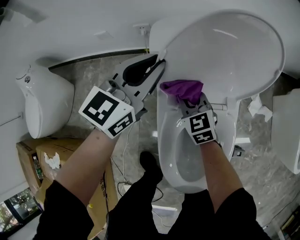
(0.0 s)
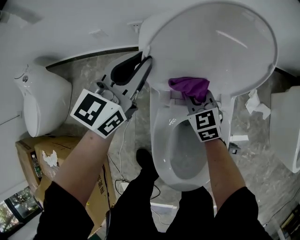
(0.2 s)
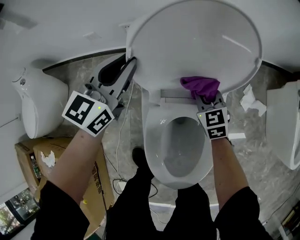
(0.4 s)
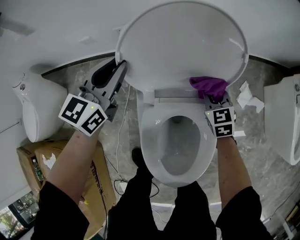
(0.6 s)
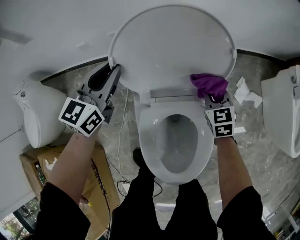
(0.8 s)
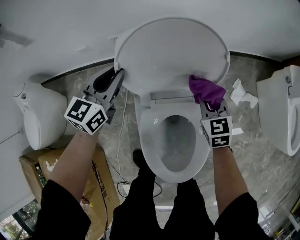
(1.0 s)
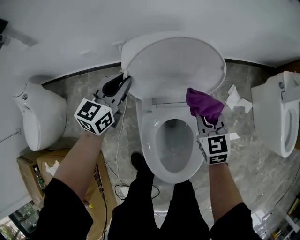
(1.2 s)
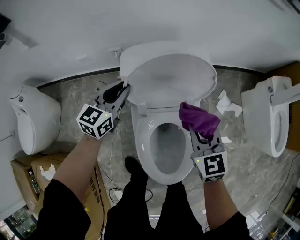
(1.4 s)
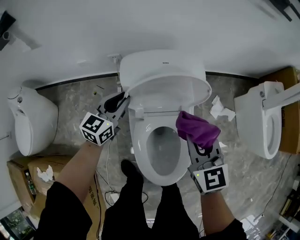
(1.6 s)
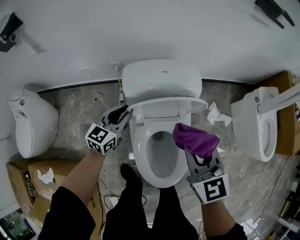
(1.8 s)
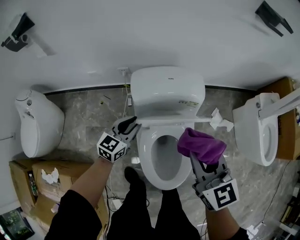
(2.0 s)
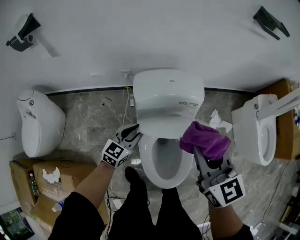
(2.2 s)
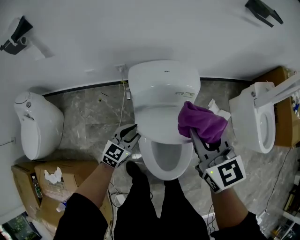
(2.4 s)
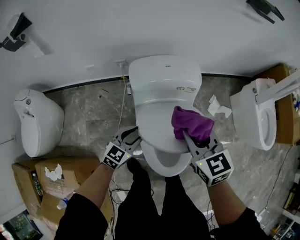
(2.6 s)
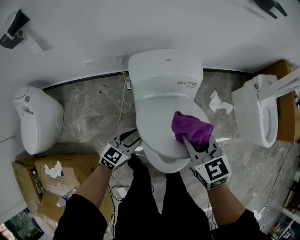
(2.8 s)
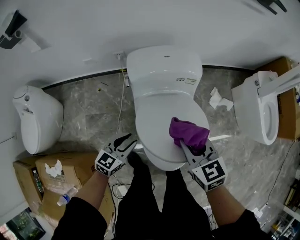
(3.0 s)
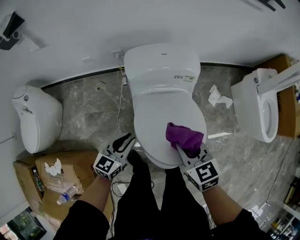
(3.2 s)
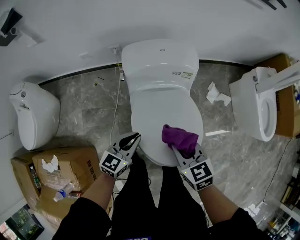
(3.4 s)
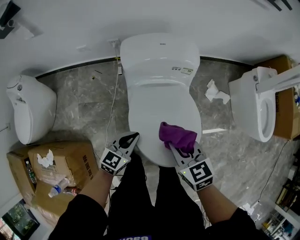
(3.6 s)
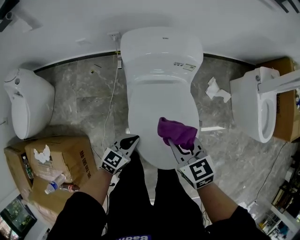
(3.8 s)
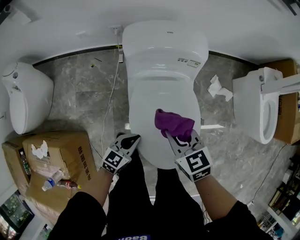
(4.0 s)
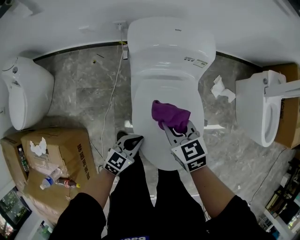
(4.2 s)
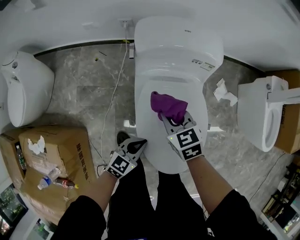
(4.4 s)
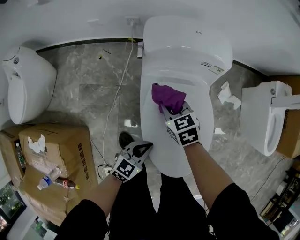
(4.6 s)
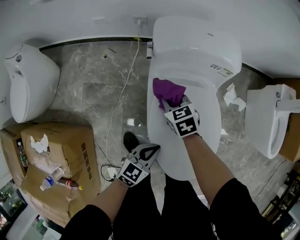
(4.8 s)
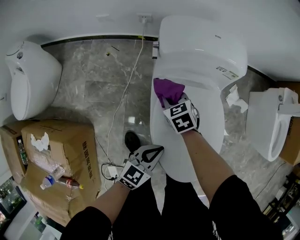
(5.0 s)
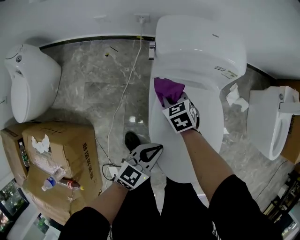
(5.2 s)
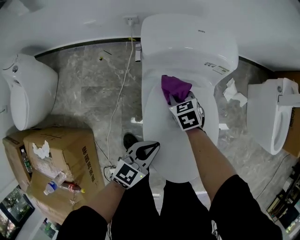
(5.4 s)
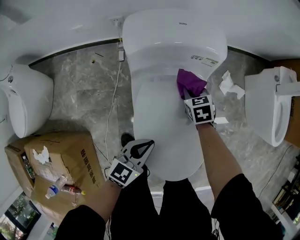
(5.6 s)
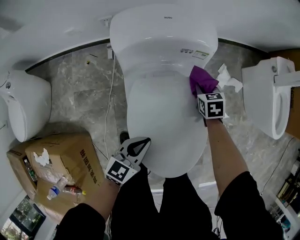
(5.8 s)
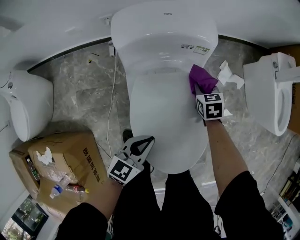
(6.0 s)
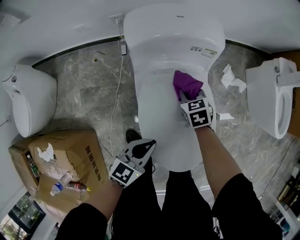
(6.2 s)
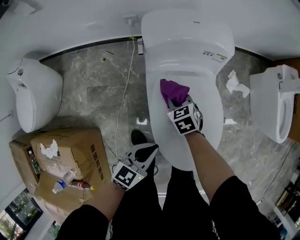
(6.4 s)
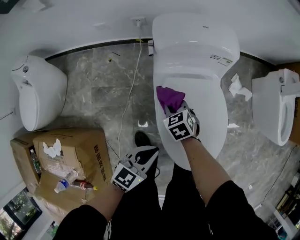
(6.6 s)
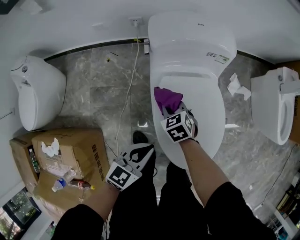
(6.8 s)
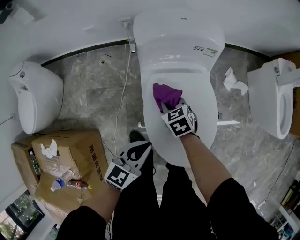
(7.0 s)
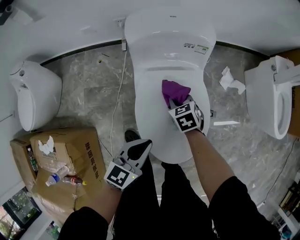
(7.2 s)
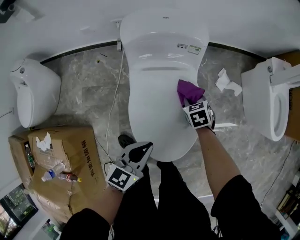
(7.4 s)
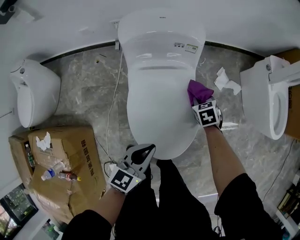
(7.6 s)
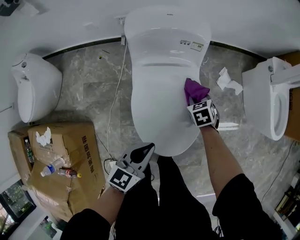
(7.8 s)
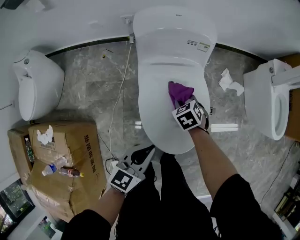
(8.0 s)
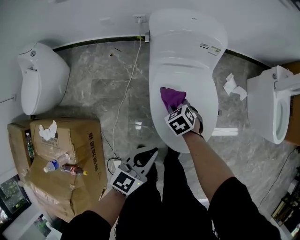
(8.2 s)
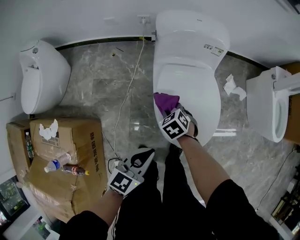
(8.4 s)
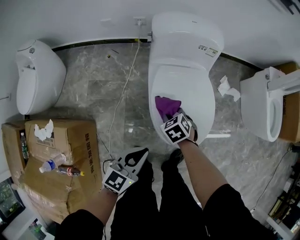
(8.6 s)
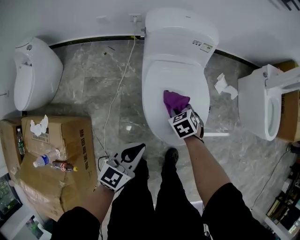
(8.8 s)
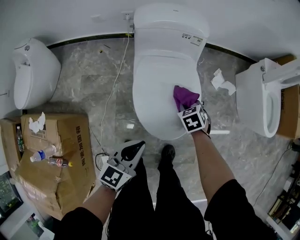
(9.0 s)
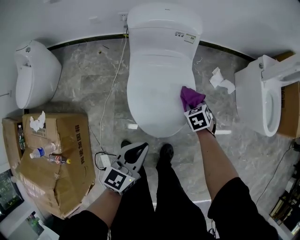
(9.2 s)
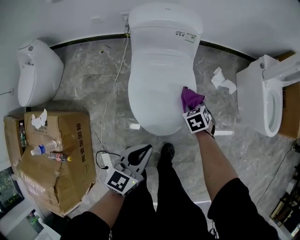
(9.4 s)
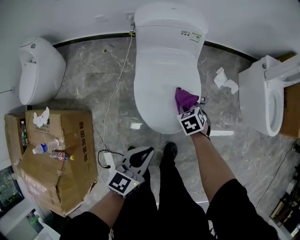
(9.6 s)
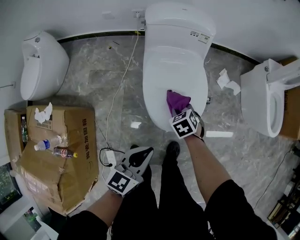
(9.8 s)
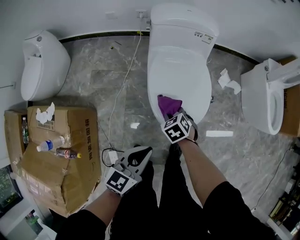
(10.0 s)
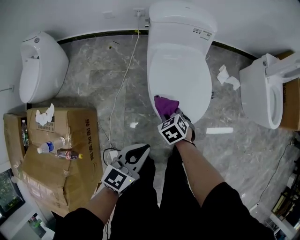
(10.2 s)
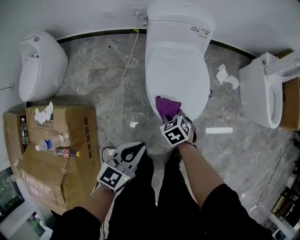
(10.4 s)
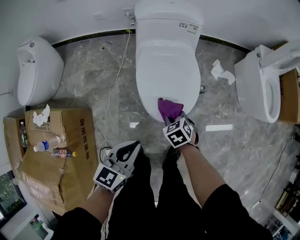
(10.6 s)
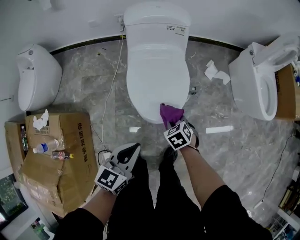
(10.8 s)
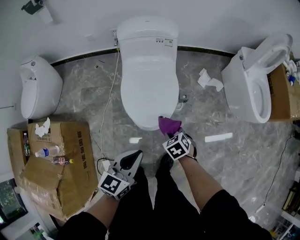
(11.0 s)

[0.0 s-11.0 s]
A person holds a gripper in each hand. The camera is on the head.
0.0 to 1.6 s: The right gripper is displaced upward and to the right by some 30 cm.
1.6 to 3.2 s: The left gripper moves backward, roughly 20 cm; the right gripper is displaced backward by some 15 cm, reaches roughly 15 cm upward, then returns, and turns by roughly 20 degrees.
3.2 to 4.8 s: The left gripper travels downward, backward and to the right by some 15 cm, and closes up. The right gripper shifts roughly 30 cm downward, to the left and forward.
4.8 to 6.2 s: The right gripper moves to the right, roughly 15 cm, while the left gripper shifts approximately 5 cm upward.
6.2 to 7.8 s: The right gripper moves left and right over roughly 30 cm, changing direction 2 times. Meanwhile the left gripper moves upward, backward and to the right, approximately 10 cm.
7.8 to 9.4 s: The two grippers go some 10 cm backward. The right gripper travels to the left and back again, approximately 25 cm each way. The left gripper goes to the left and returns, roughly 10 cm each way.
9.4 to 11.0 s: The right gripper goes about 20 cm backward, and moves some 20 cm to the left and comes back, while the left gripper heads backward, covering approximately 10 cm, and moves roughly 10 cm to the left and comes back.

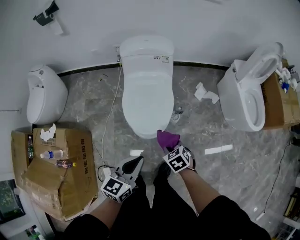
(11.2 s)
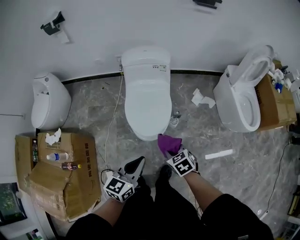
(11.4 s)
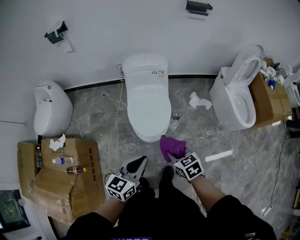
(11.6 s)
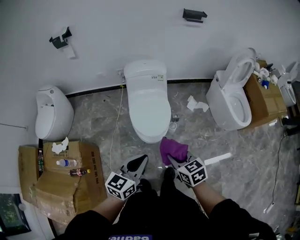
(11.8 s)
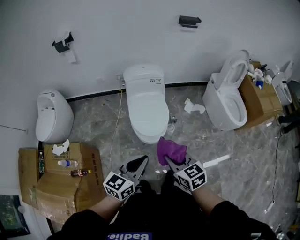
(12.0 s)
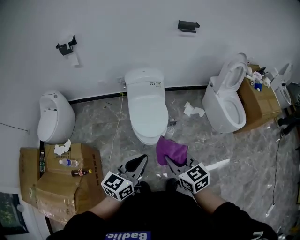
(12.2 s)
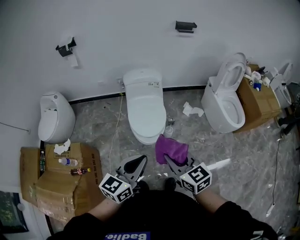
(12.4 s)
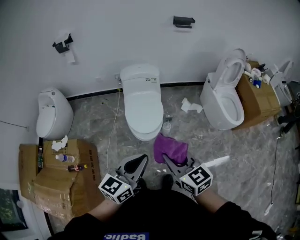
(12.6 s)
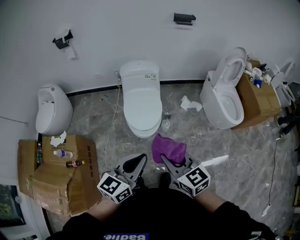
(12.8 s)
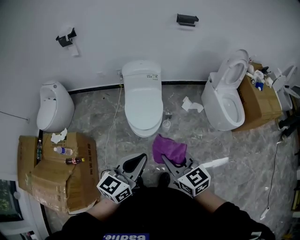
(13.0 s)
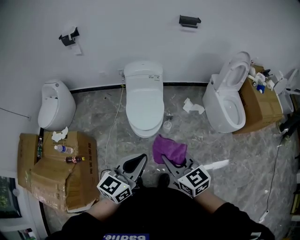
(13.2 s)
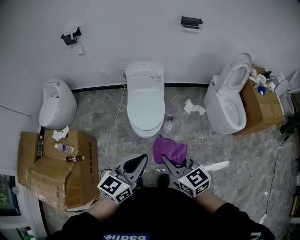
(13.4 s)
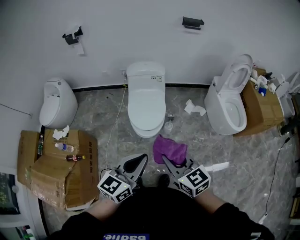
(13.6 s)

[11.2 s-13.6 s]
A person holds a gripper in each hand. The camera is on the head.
11.2 to 12.4 s: Both grippers travel together upward and backward, approximately 35 cm. The right gripper points its fingers roughly 40 degrees further upward.
12.4 to 13.6 s: The left gripper ends up about 5 cm from where it was.

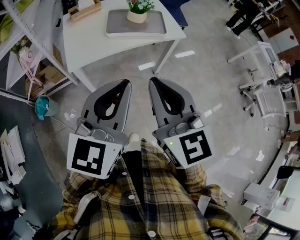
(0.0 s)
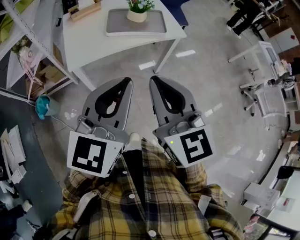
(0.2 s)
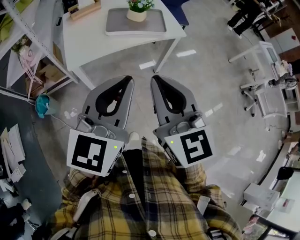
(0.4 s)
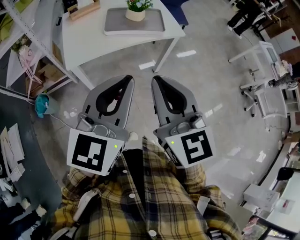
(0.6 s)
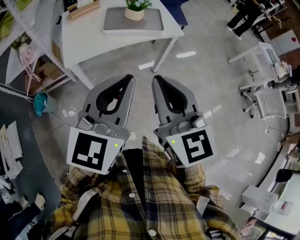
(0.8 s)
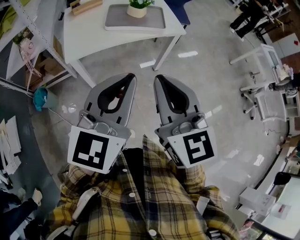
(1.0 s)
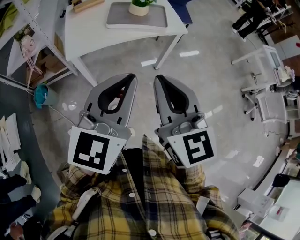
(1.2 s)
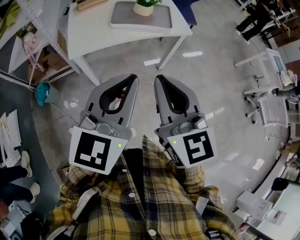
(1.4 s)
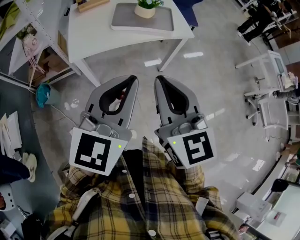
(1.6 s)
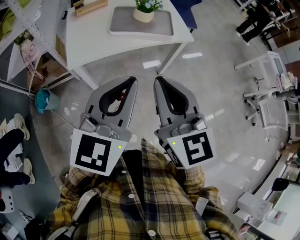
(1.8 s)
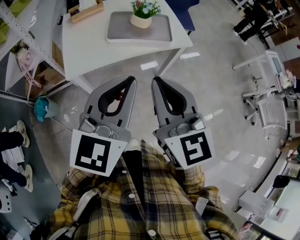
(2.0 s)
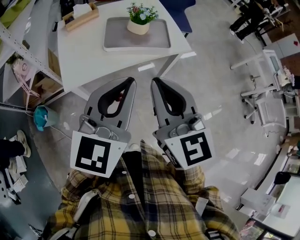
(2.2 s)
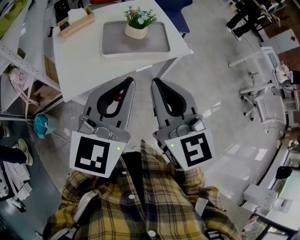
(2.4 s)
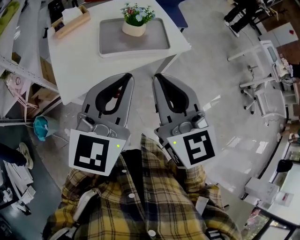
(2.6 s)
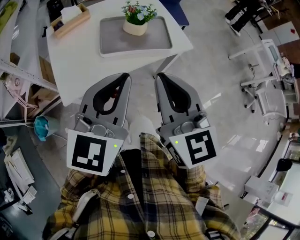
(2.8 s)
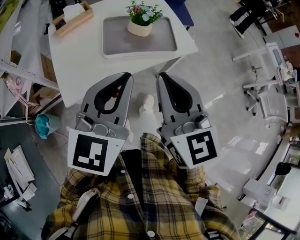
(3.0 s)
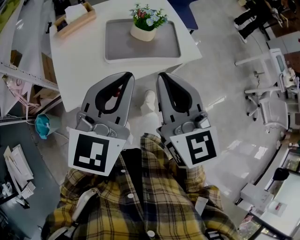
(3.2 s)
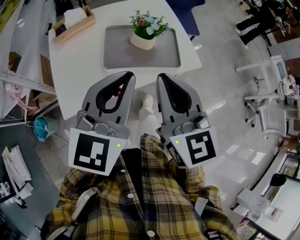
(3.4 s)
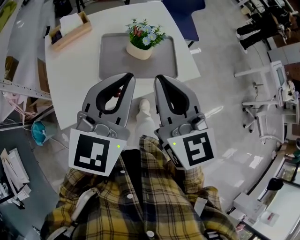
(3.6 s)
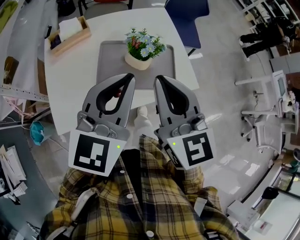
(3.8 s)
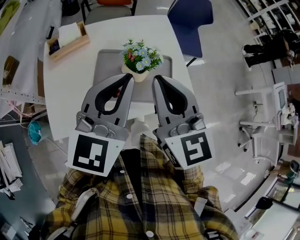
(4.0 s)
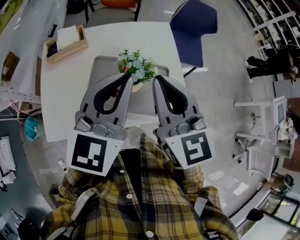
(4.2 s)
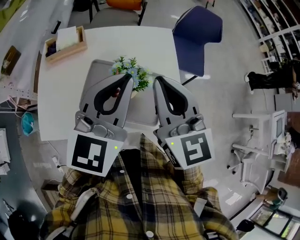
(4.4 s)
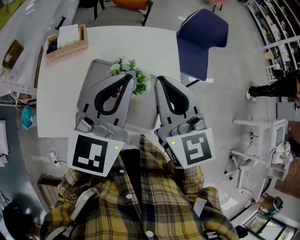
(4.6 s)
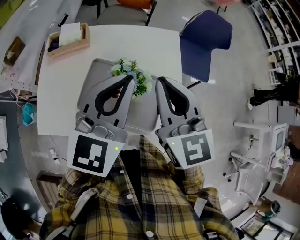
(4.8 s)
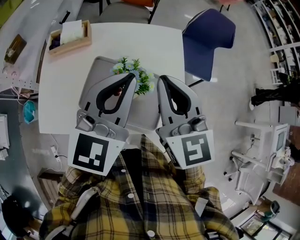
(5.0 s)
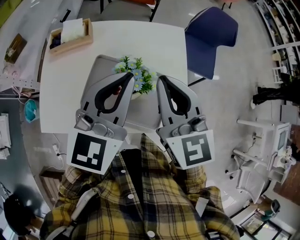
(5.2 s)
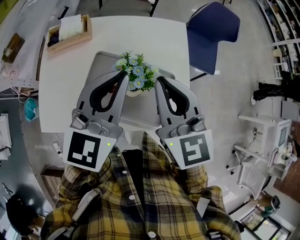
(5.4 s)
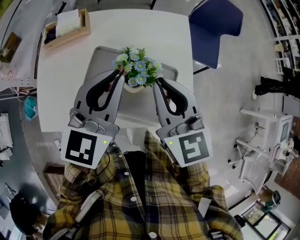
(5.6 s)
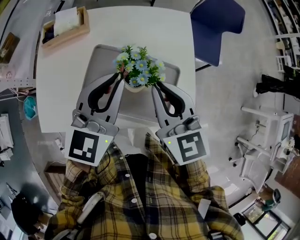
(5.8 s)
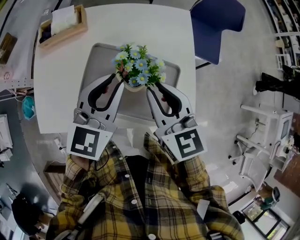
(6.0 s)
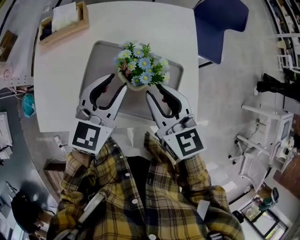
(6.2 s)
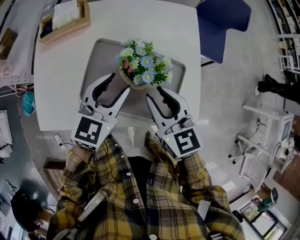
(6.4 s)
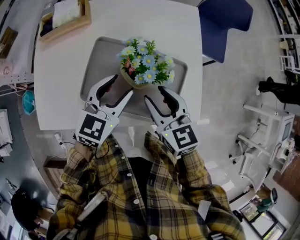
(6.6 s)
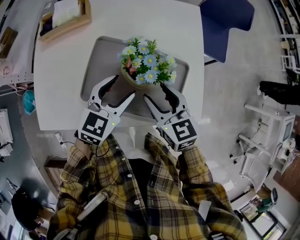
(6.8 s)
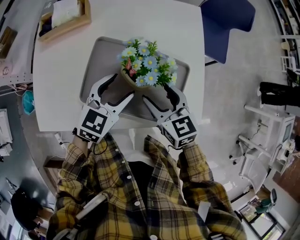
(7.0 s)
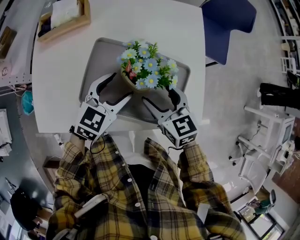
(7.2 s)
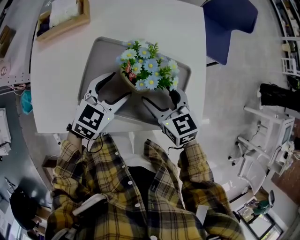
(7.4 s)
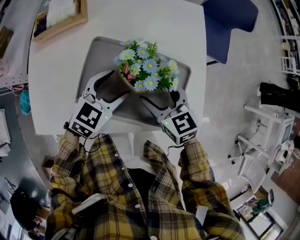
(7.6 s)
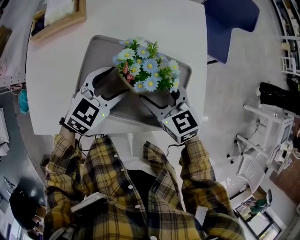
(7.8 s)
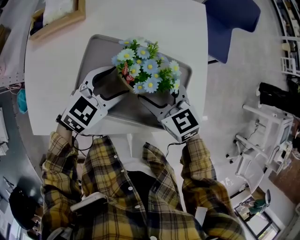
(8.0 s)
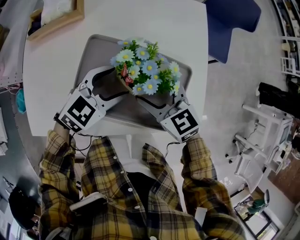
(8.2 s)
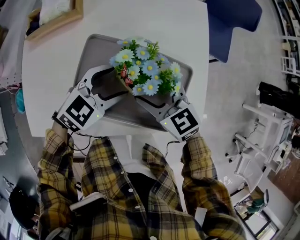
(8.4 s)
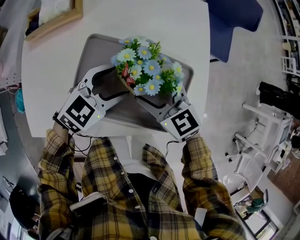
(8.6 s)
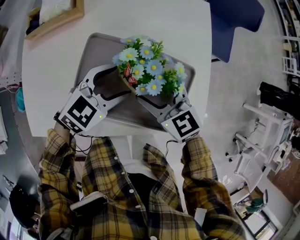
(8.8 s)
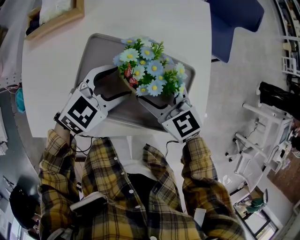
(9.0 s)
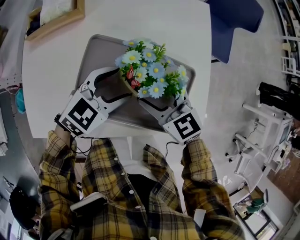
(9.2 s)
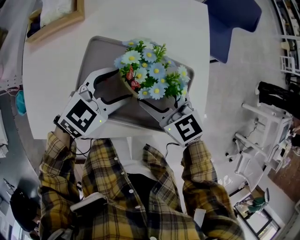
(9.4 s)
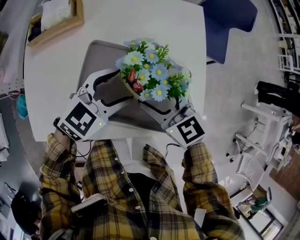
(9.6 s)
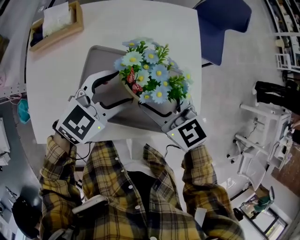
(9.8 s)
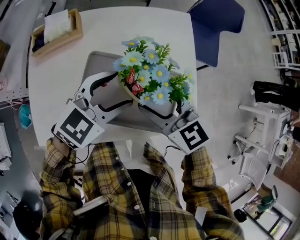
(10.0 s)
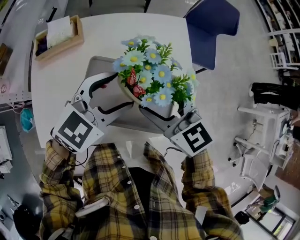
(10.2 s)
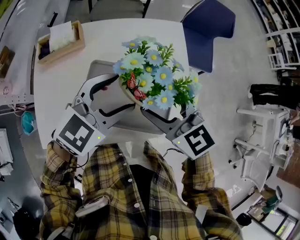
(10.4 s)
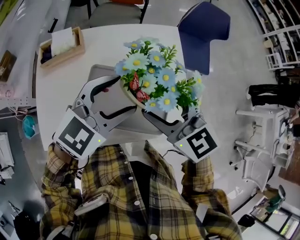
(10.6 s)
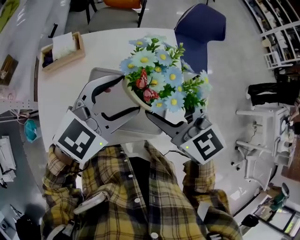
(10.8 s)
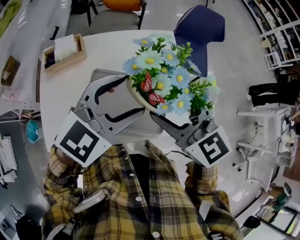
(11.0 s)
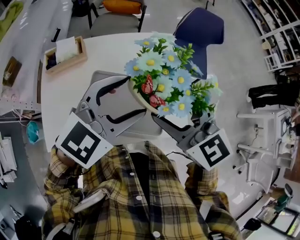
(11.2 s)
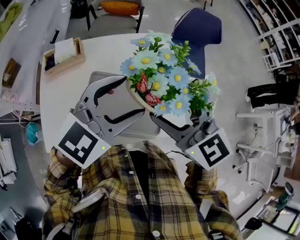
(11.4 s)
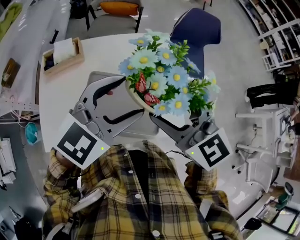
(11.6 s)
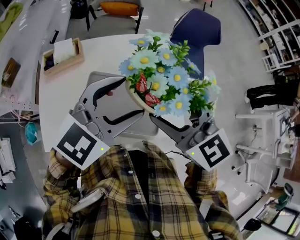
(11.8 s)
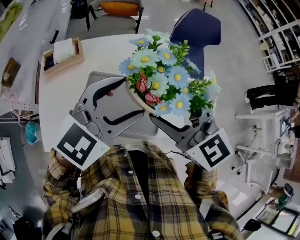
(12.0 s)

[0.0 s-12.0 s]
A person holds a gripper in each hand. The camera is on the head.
0.0 to 1.6 s: The grippers move only a little.
1.6 to 3.0 s: The two grippers go approximately 25 cm forward.
3.0 to 4.4 s: The two grippers go about 35 cm forward. The right gripper changes its angle by approximately 20 degrees.
4.4 to 6.0 s: Both grippers move downward, some 15 cm.
6.0 to 7.6 s: Both grippers travel together downward, approximately 15 cm. The left gripper rotates some 20 degrees, and opens its fingers. Meanwhile the right gripper opens its fingers.
7.6 to 10.4 s: The grippers make only small movements.
10.4 to 12.0 s: The grippers make only small movements.
